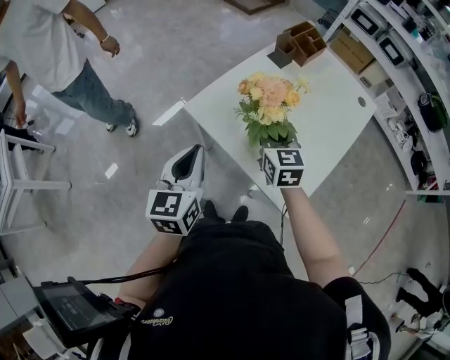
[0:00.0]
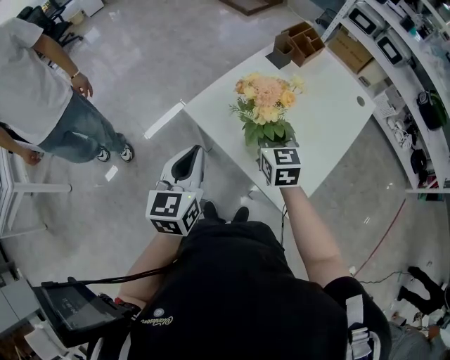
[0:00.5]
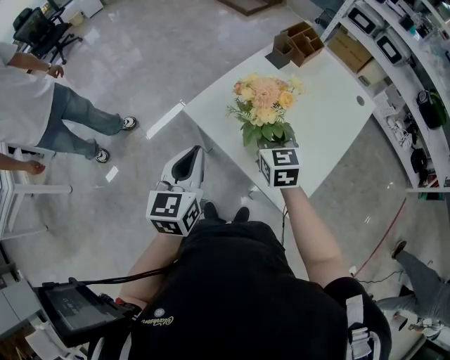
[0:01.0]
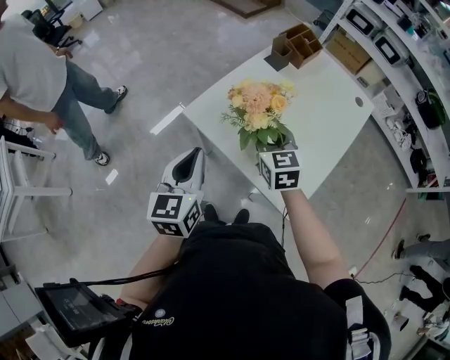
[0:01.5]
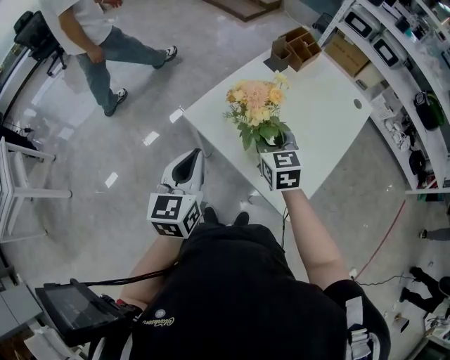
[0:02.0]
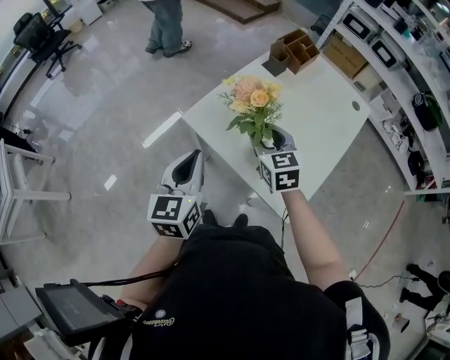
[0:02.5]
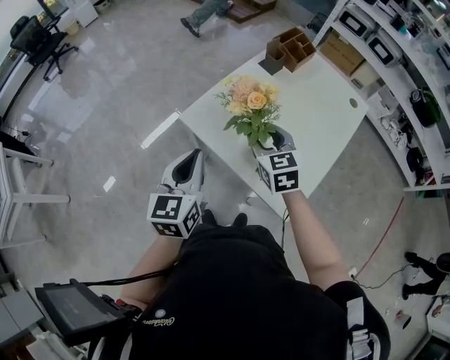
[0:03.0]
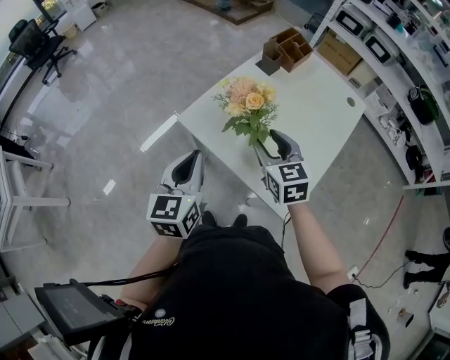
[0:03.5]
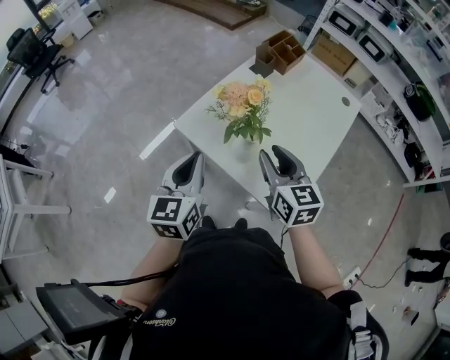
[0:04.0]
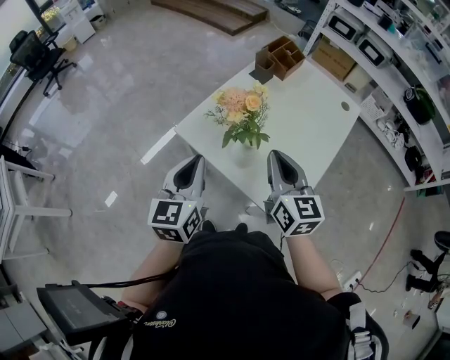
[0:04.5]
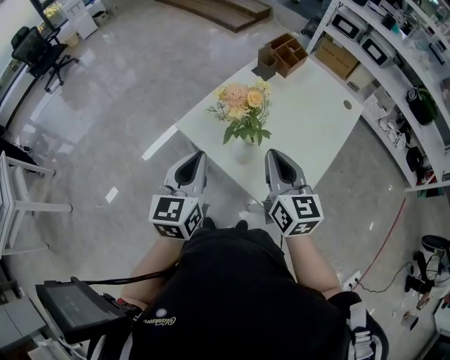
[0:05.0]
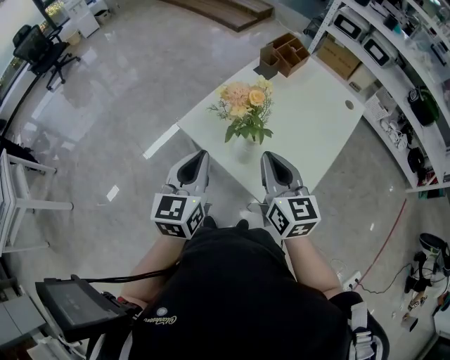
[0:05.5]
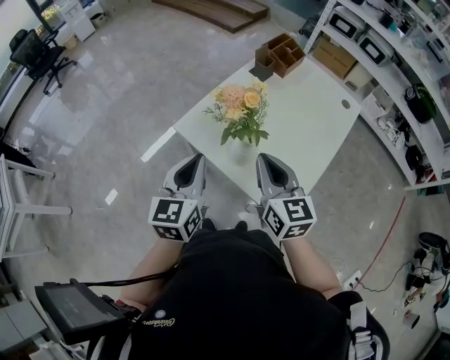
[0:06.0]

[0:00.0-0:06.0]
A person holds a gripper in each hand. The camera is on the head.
0:00.0 to 0:02.0: The right gripper opens its fingers.
0:02.0 to 0:04.0: The right gripper travels backward and upward by some 10 cm.
0:04.0 to 0:06.0: The right gripper closes.

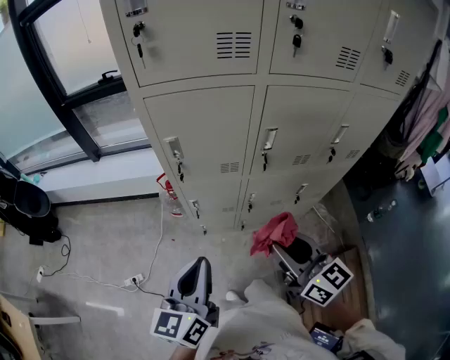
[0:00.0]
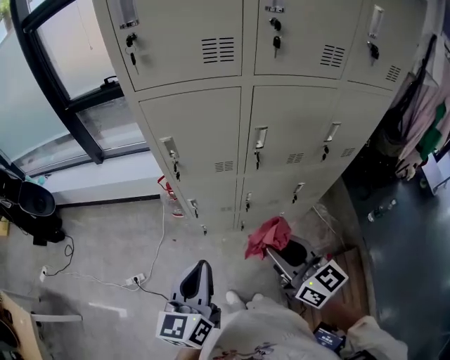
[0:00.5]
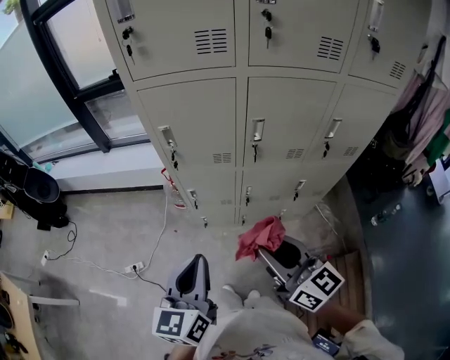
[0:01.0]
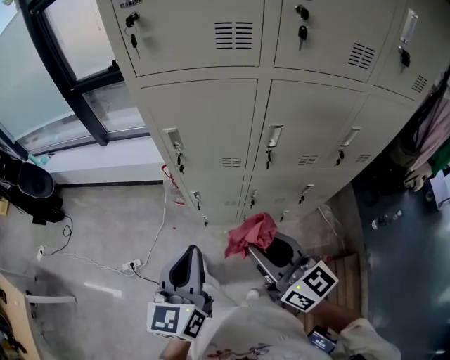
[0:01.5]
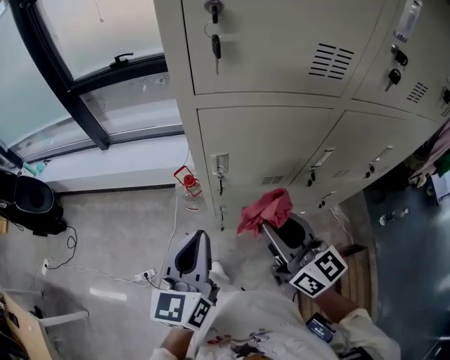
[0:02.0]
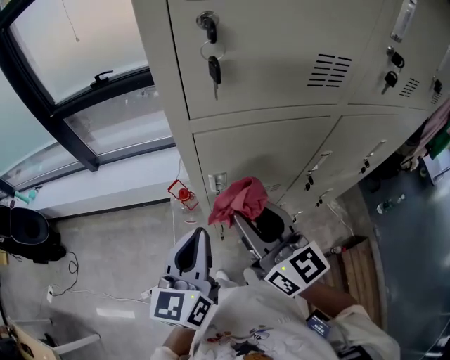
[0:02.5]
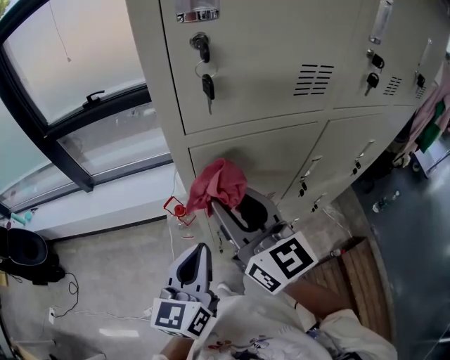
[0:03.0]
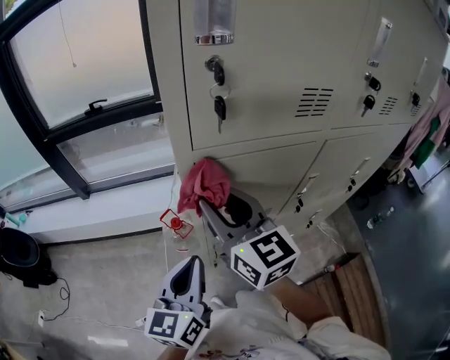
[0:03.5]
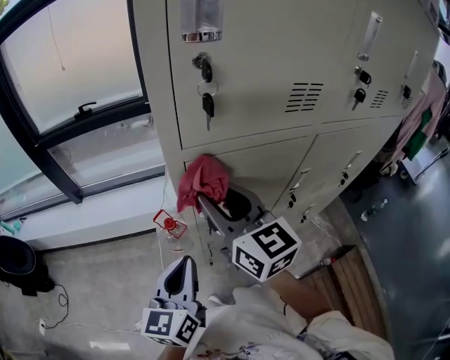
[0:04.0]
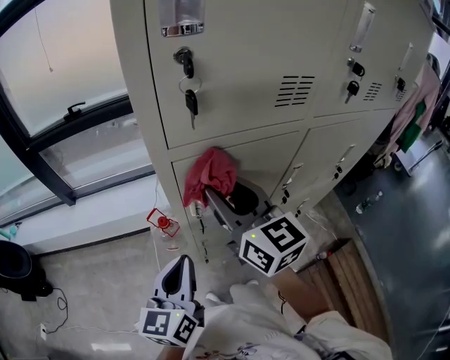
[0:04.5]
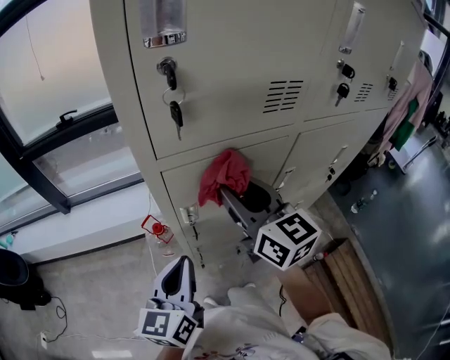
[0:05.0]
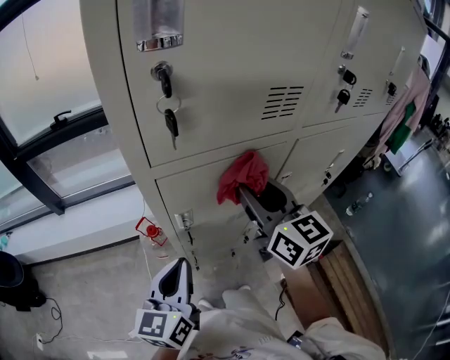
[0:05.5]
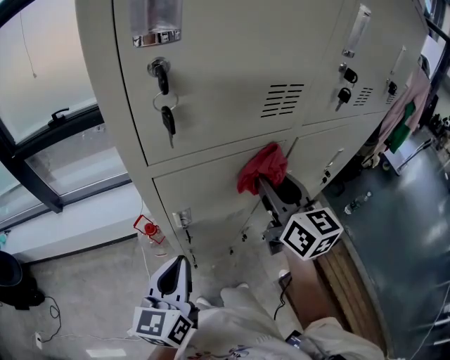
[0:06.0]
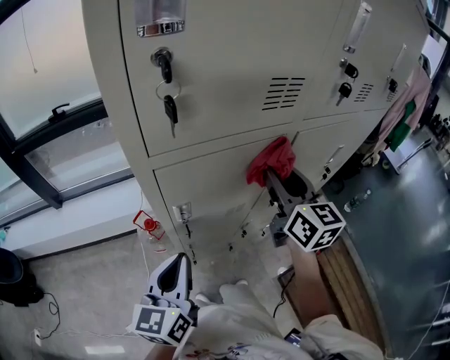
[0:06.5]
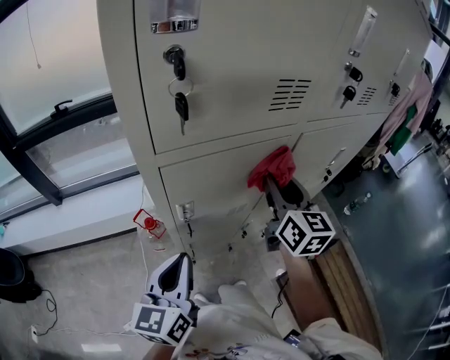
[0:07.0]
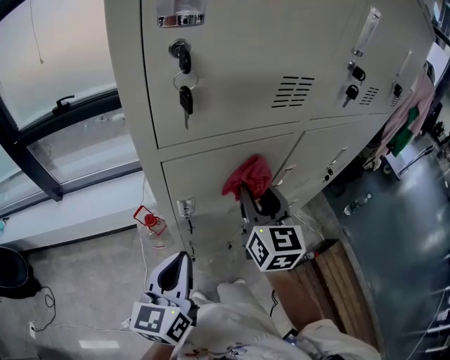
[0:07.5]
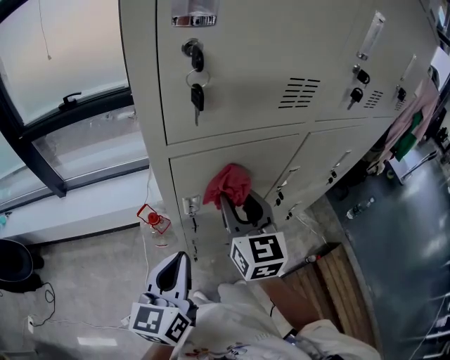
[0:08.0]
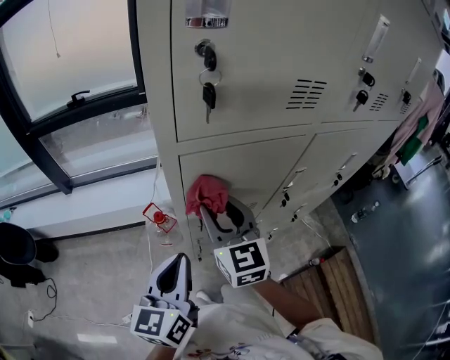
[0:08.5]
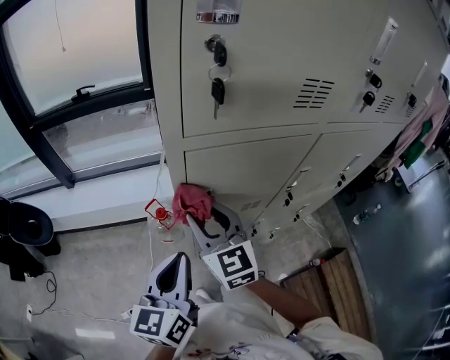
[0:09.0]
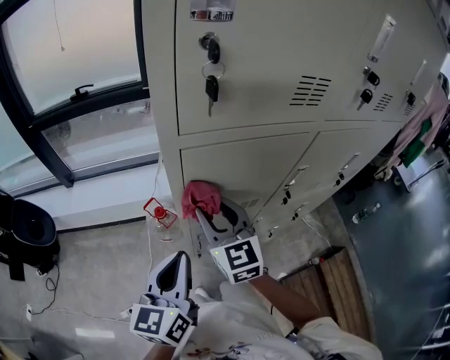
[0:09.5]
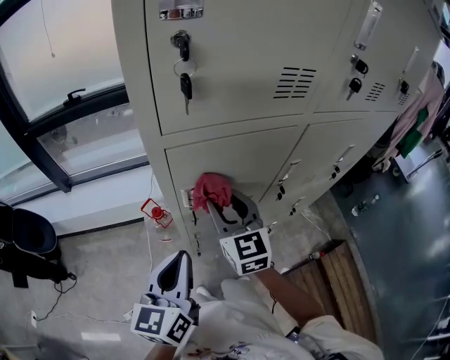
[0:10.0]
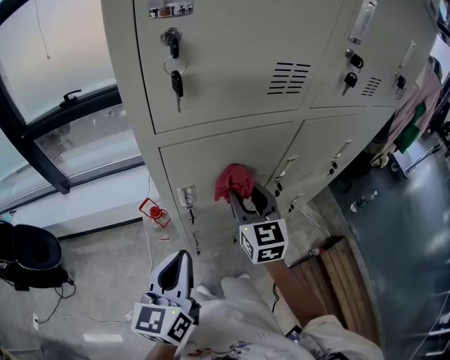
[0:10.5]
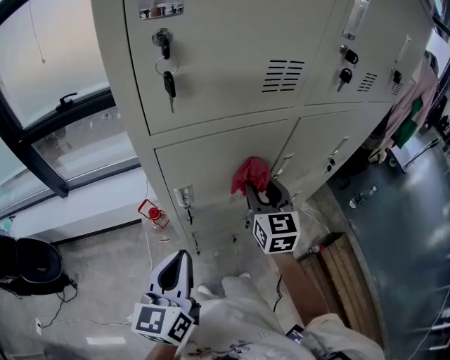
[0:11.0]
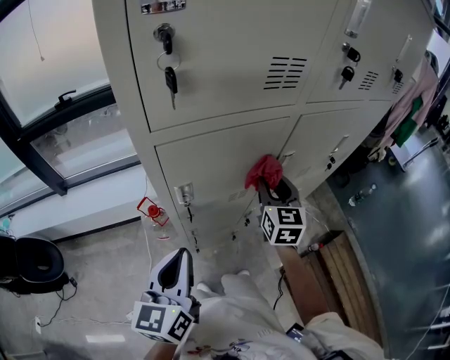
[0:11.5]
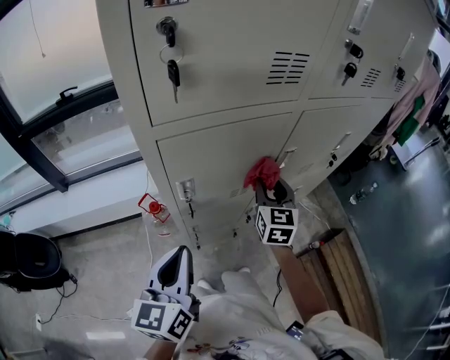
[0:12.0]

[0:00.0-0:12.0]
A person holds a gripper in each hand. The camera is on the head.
0:00.0 to 0:02.0: Both grippers move forward and to the left, about 20 cm.
0:02.0 to 0:04.0: The left gripper travels forward by roughly 5 cm. The right gripper heads forward, to the left and upward, covering roughly 20 cm.
0:04.0 to 0:06.0: The right gripper goes approximately 20 cm to the right, while the left gripper changes place by some 5 cm.
0:06.0 to 0:08.0: The right gripper moves to the left and downward, approximately 10 cm.
0:08.0 to 0:10.0: The right gripper moves approximately 10 cm to the left and comes back.
0:10.0 to 0:12.0: The right gripper moves to the right, some 15 cm, and changes its angle by about 30 degrees.

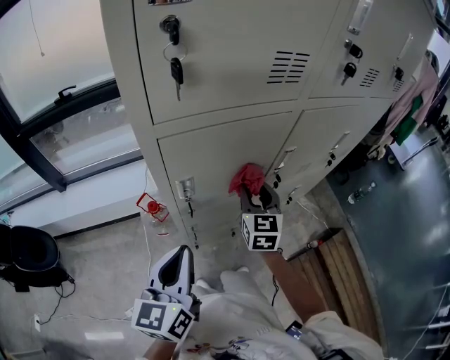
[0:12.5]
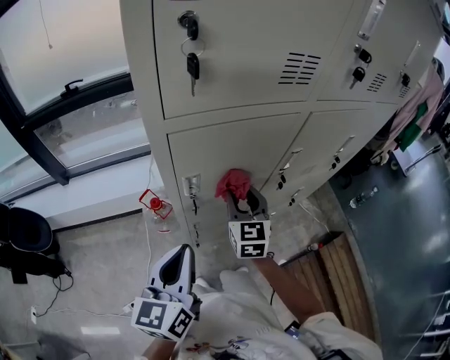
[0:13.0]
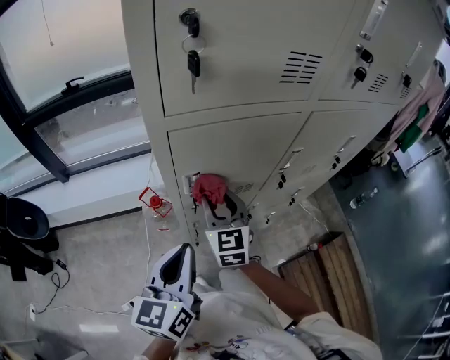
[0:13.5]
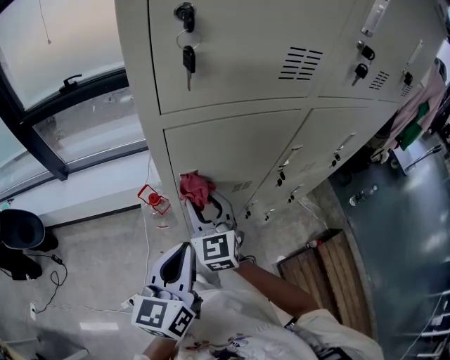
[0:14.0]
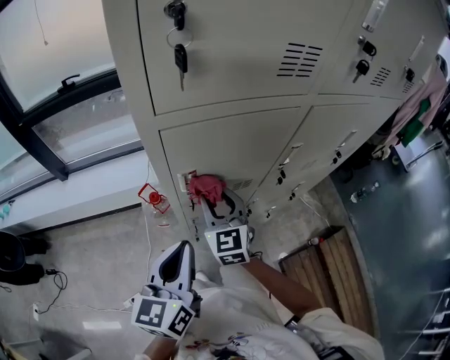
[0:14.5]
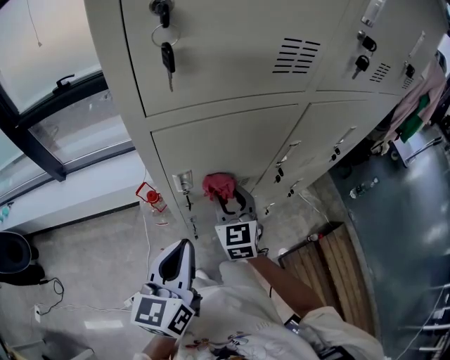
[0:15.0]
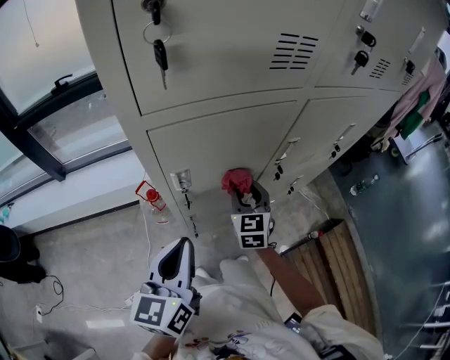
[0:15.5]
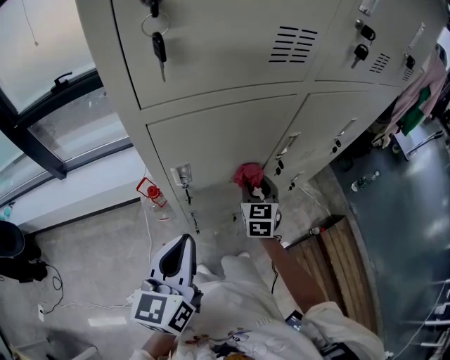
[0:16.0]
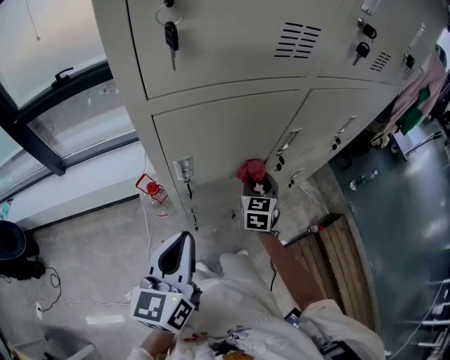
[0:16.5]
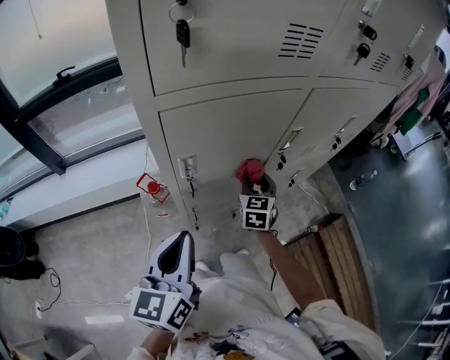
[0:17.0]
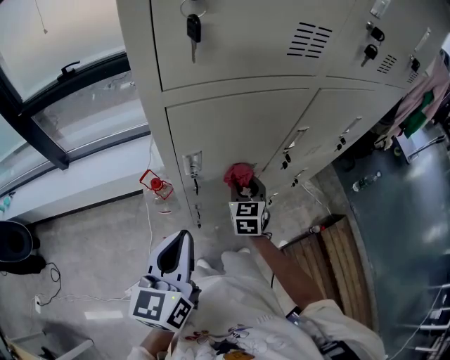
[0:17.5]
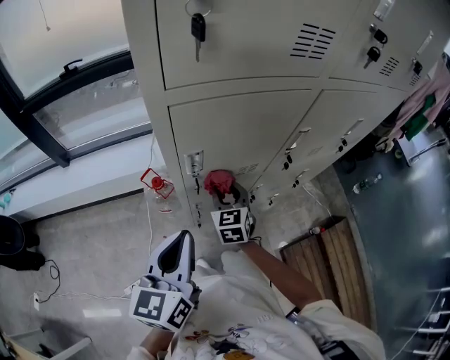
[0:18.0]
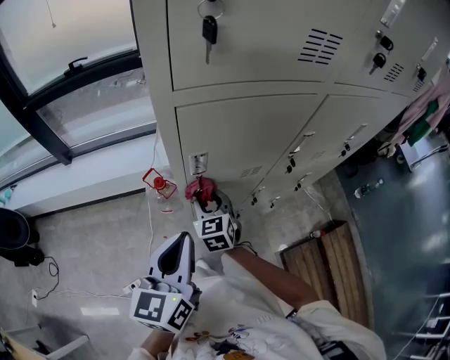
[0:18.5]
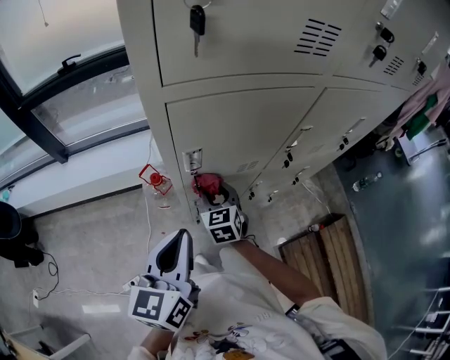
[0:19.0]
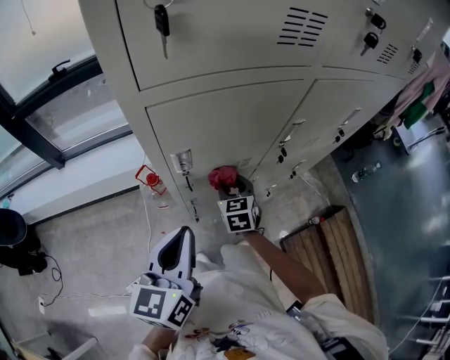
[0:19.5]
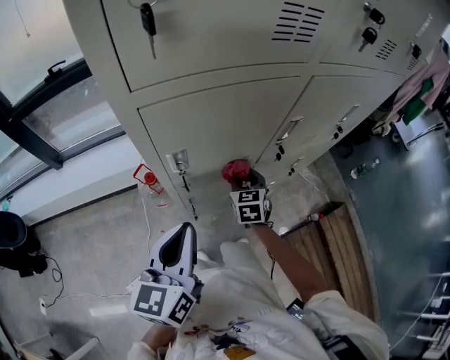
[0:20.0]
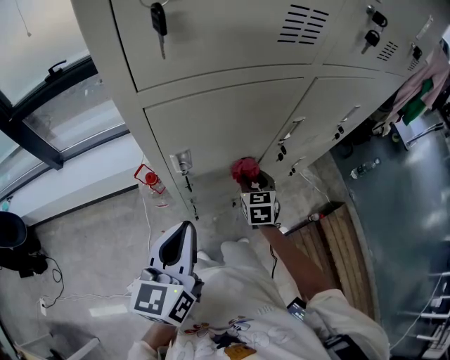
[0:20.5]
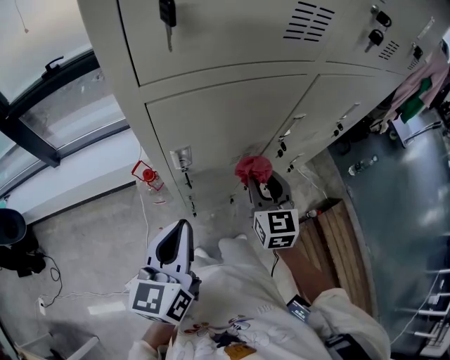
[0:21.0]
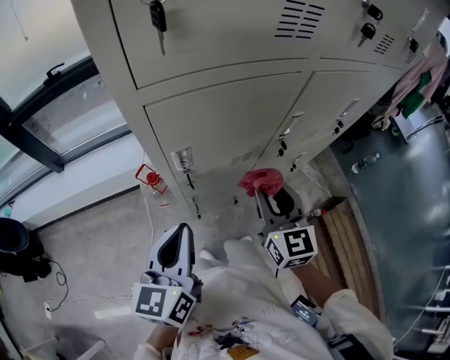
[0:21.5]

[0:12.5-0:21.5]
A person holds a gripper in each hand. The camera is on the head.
0:12.5 to 0:14.5: The right gripper heads to the left, covering some 10 cm.
0:14.5 to 0:17.0: The right gripper moves to the right, downward and forward, about 15 cm, and turns by about 30 degrees.
0:17.0 to 0:19.5: The right gripper travels to the left by about 10 cm.
0:19.5 to 0:21.5: The right gripper shifts about 20 cm upward, backward and to the right, and swivels roughly 20 degrees.
